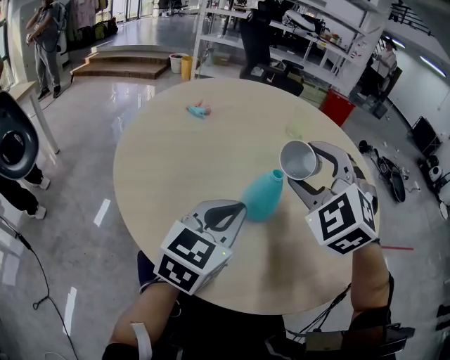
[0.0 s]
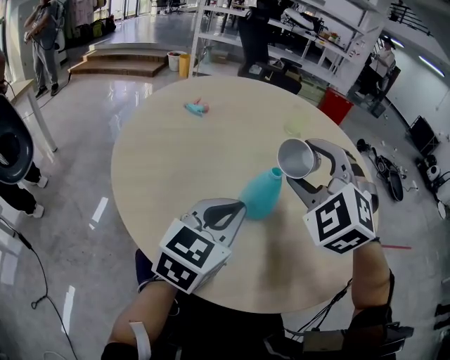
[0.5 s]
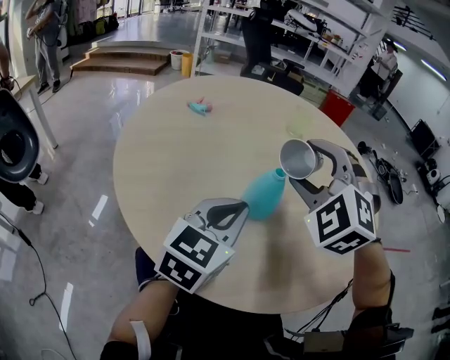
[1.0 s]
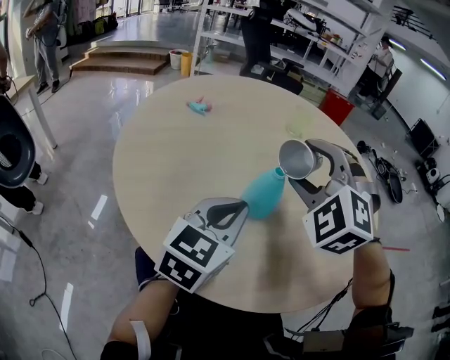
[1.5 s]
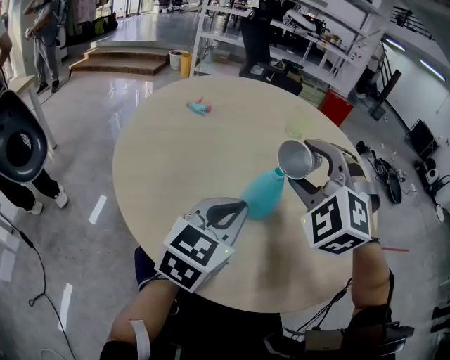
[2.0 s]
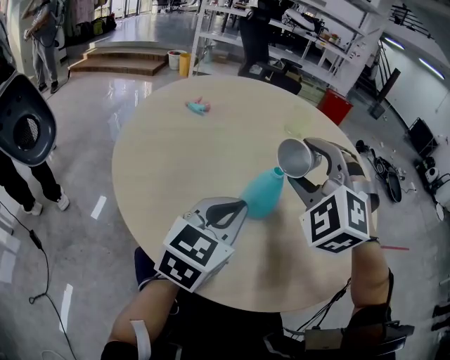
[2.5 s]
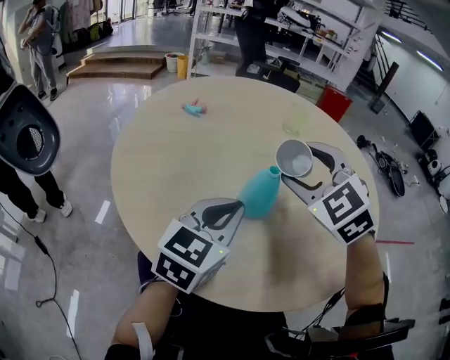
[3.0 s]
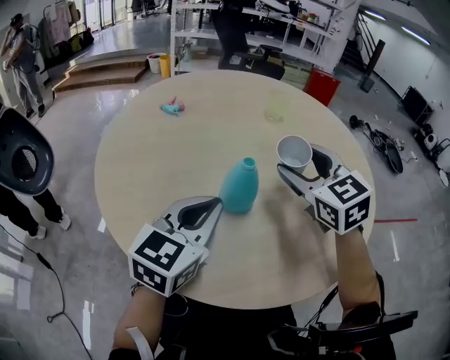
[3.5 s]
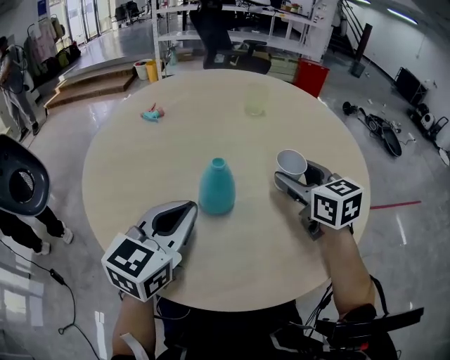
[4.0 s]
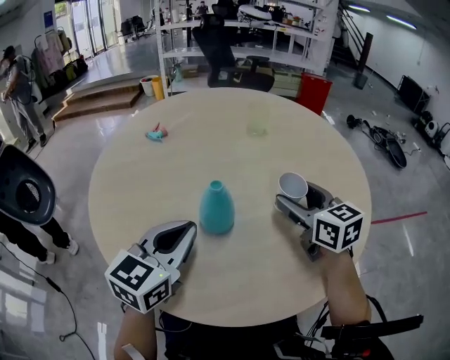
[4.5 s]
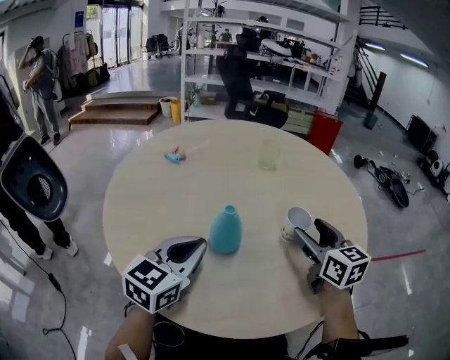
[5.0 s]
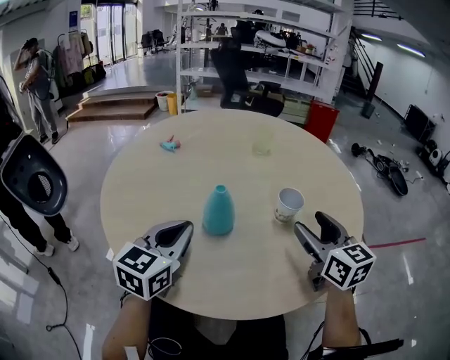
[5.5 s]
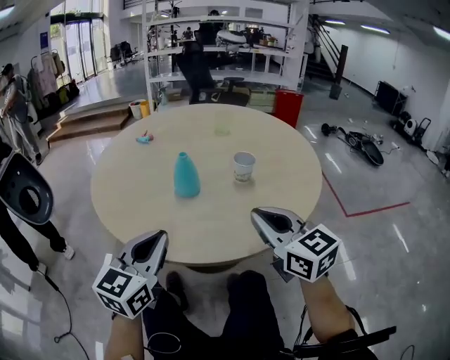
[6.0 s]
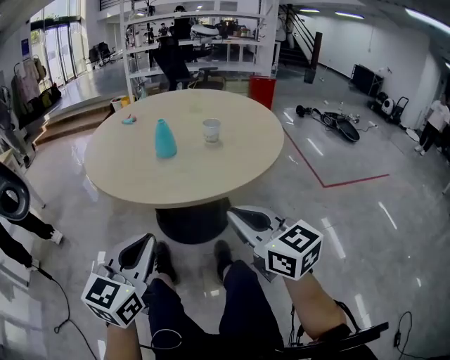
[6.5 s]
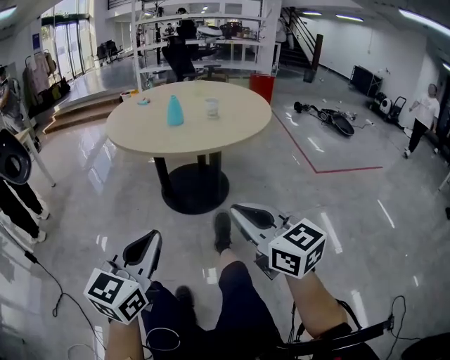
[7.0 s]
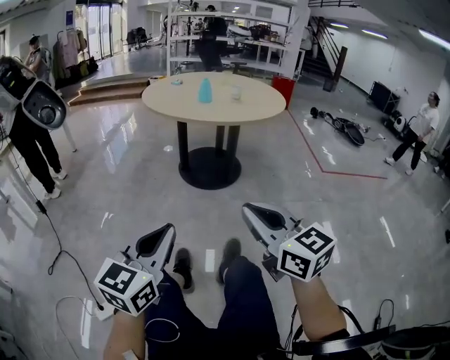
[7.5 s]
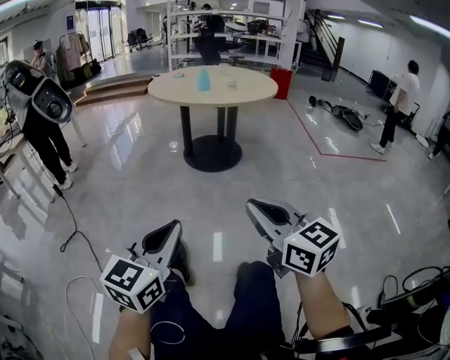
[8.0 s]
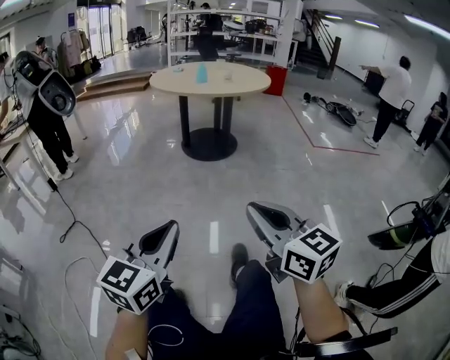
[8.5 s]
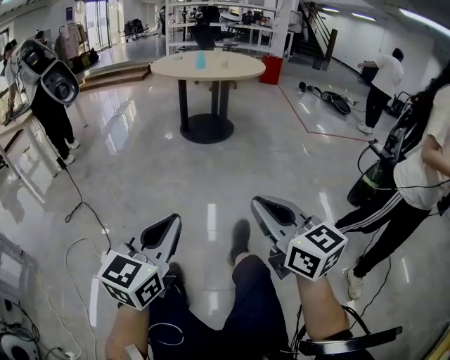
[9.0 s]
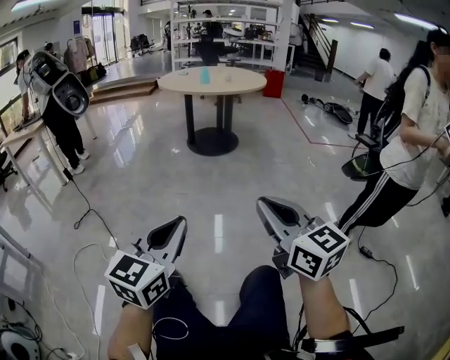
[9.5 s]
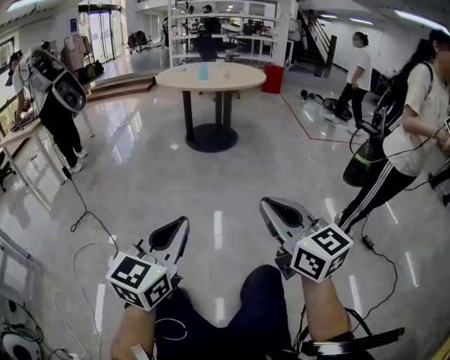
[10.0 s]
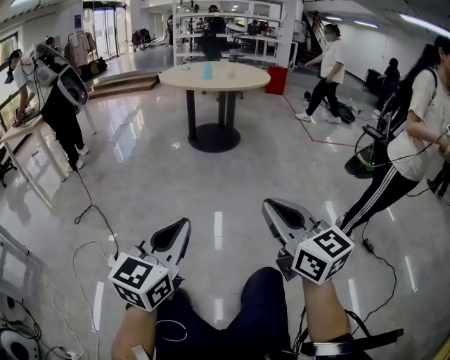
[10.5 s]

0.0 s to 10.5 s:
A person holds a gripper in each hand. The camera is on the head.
0.0 to 2.0 s: The grippers stay close to where they were, moving slightly.
2.0 to 4.0 s: The right gripper is displaced to the right and downward by roughly 15 cm, and twists roughly 70 degrees clockwise, seen from behind.
4.0 to 6.5 s: The two grippers go approximately 35 cm backward. The right gripper closes its fingers.
6.5 to 8.5 s: Both grippers are carried backward, approximately 70 cm.
8.5 to 10.5 s: The two grippers go approximately 15 cm backward.

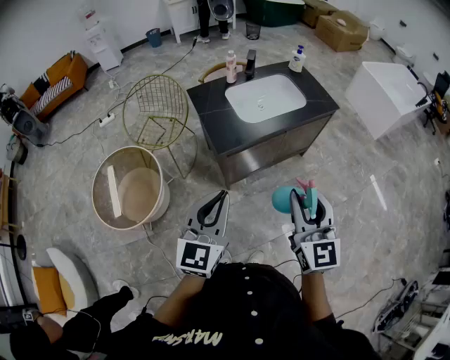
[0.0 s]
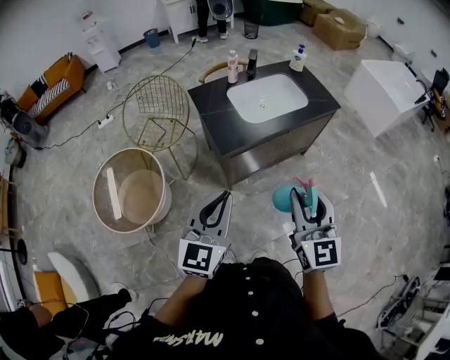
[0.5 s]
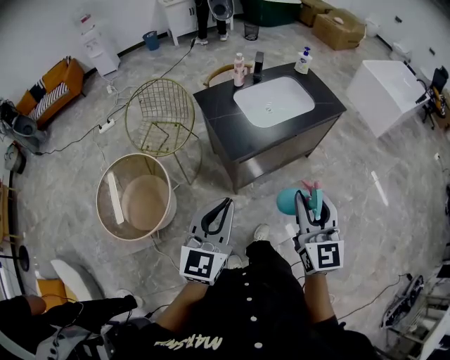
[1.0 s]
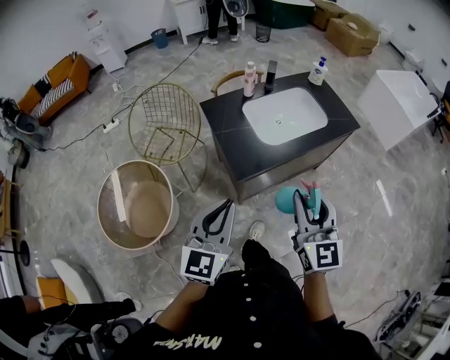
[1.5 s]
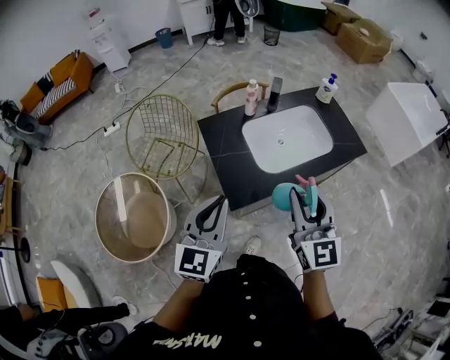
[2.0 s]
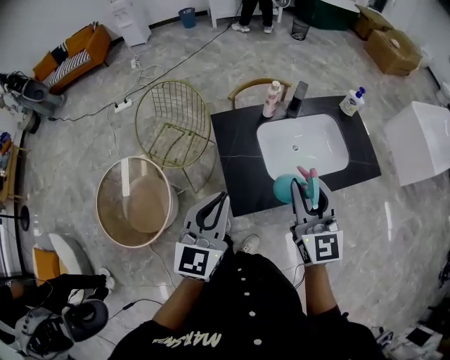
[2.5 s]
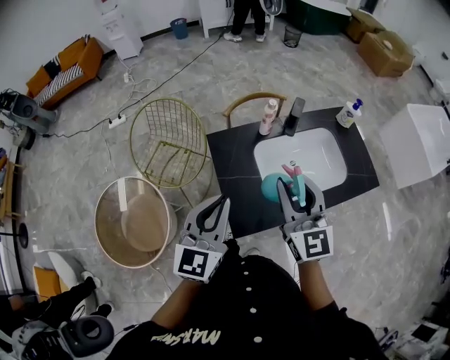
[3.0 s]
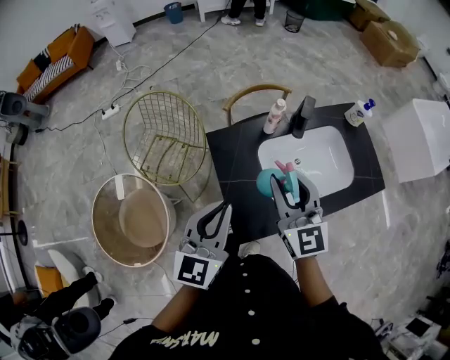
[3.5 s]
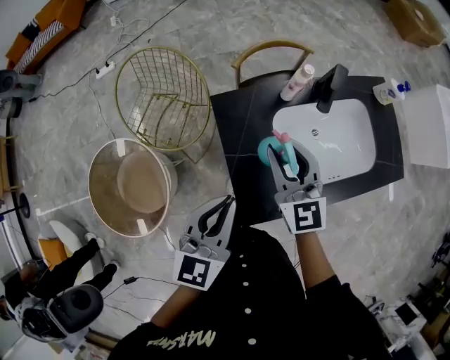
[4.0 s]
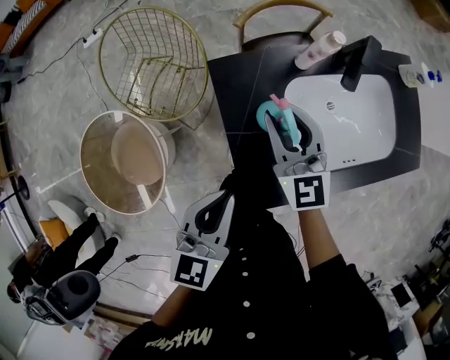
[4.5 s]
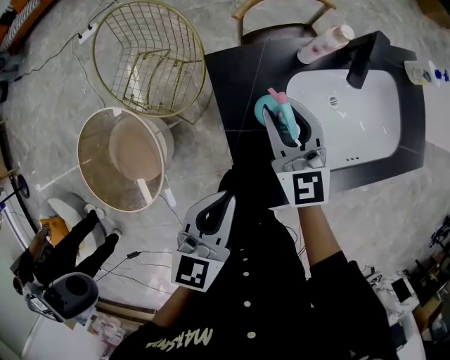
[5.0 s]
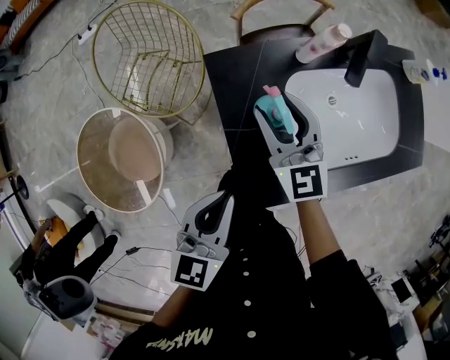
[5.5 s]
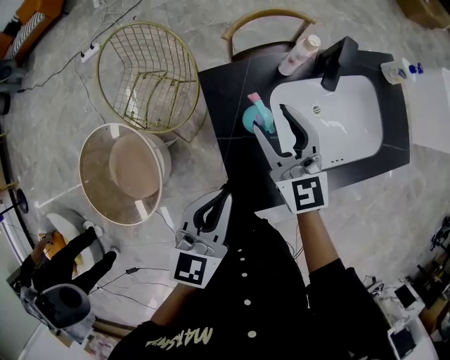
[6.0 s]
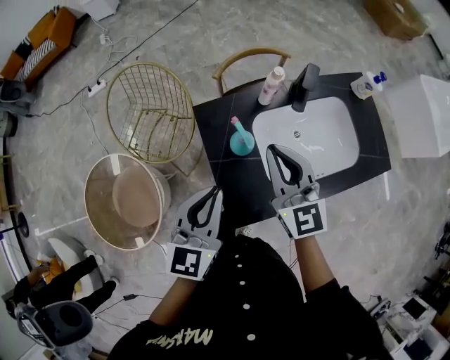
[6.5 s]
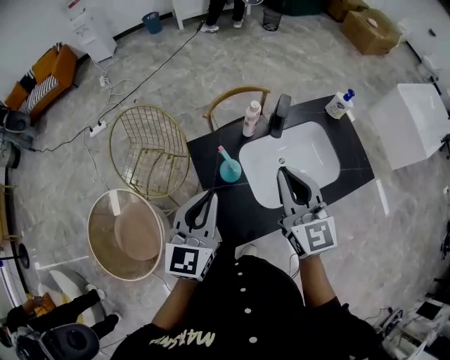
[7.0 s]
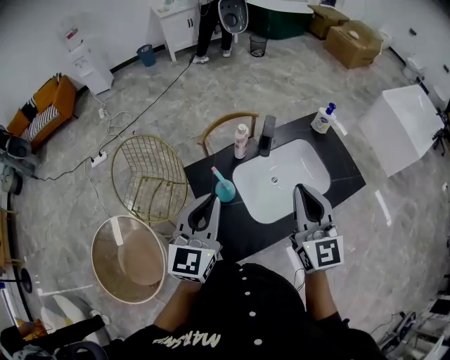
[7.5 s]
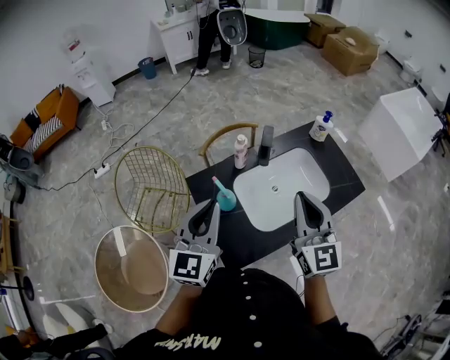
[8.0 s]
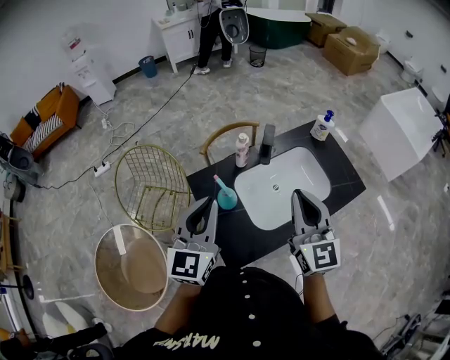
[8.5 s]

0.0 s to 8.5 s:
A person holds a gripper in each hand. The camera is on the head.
0.0 to 2.0 s: The two grippers go about 25 cm forward.
2.0 to 4.0 s: The left gripper is displaced forward and downward by some 20 cm. Meanwhile the right gripper moves forward, to the left and downward, some 35 cm.
4.0 to 6.5 s: The left gripper travels downward and back again, some 10 cm each way. Meanwhile the right gripper moves approximately 10 cm downward and comes back, and closes.
6.5 to 8.5 s: The right gripper is displaced to the right, upward and backward by roughly 20 cm, and rotates about 20 degrees. Meanwhile the left gripper goes some 10 cm upward.

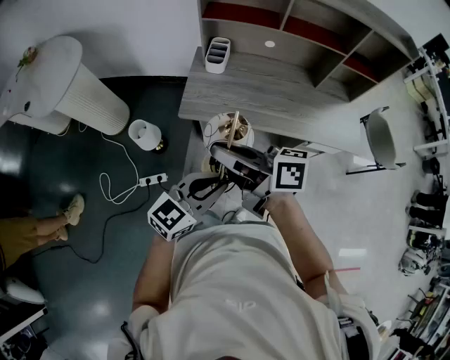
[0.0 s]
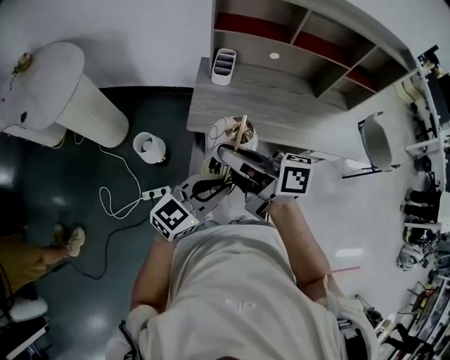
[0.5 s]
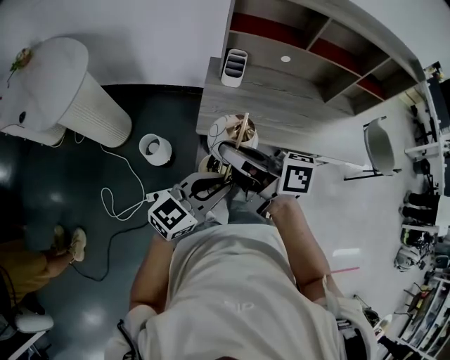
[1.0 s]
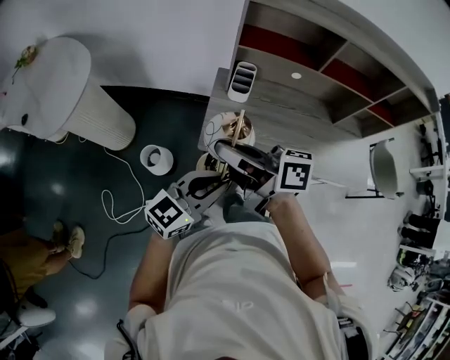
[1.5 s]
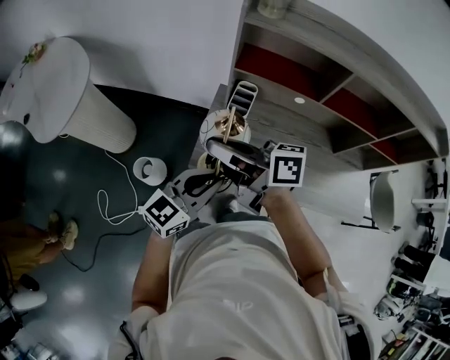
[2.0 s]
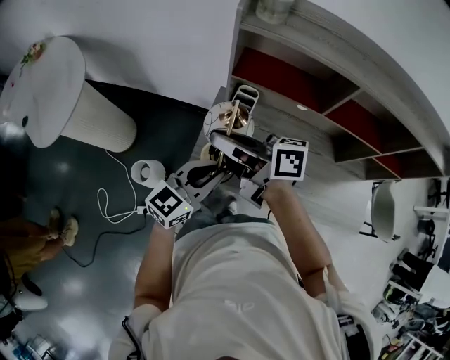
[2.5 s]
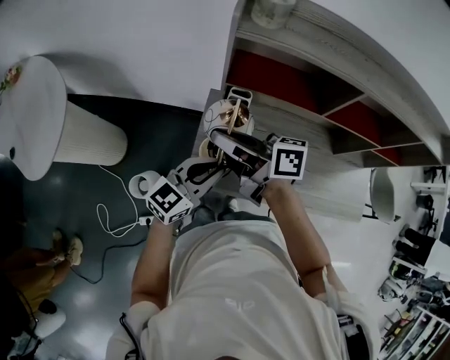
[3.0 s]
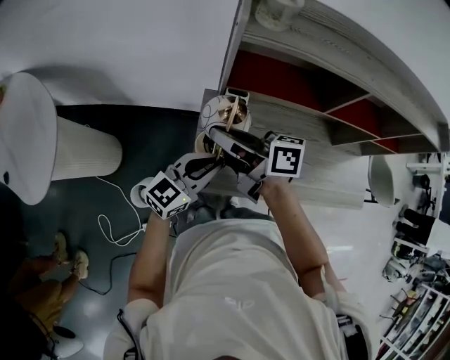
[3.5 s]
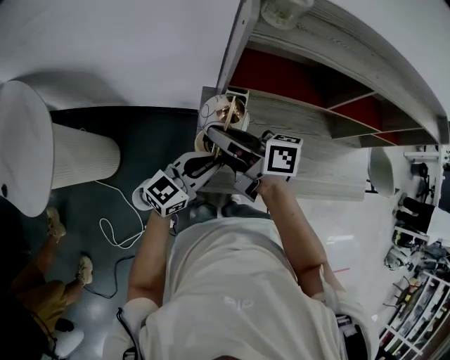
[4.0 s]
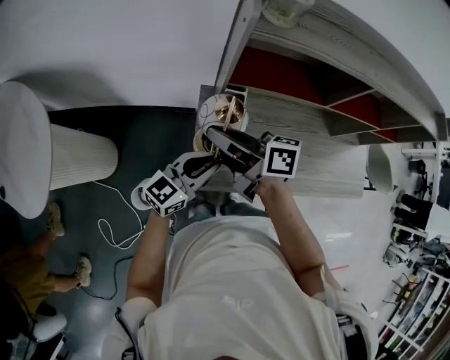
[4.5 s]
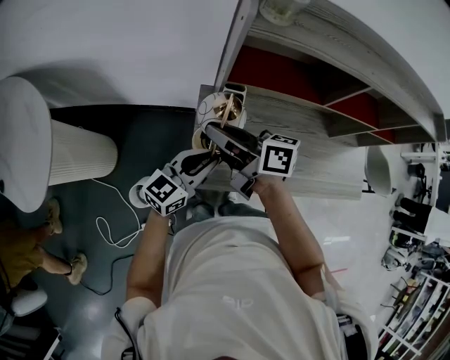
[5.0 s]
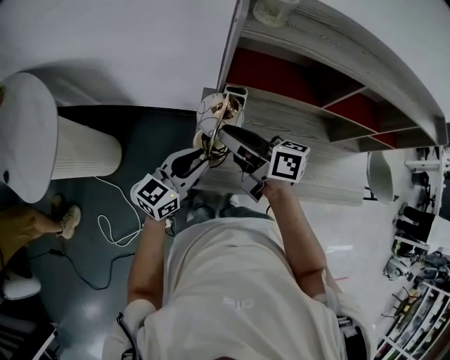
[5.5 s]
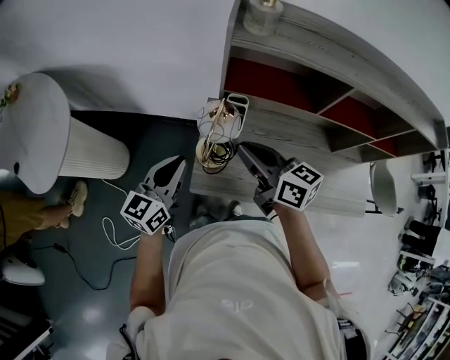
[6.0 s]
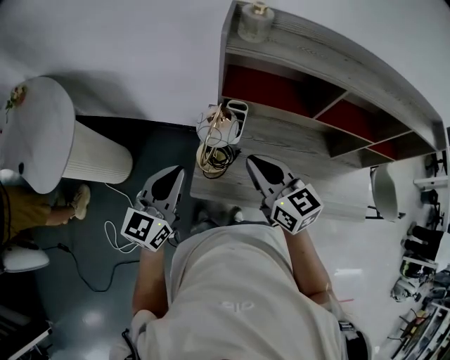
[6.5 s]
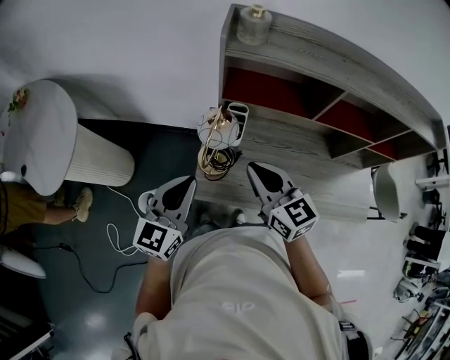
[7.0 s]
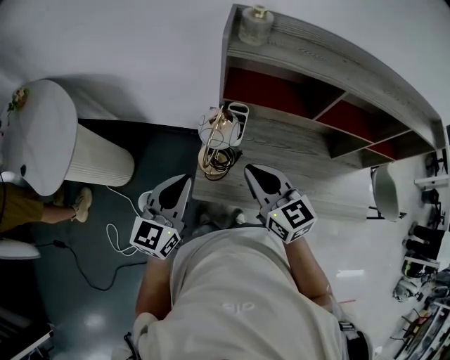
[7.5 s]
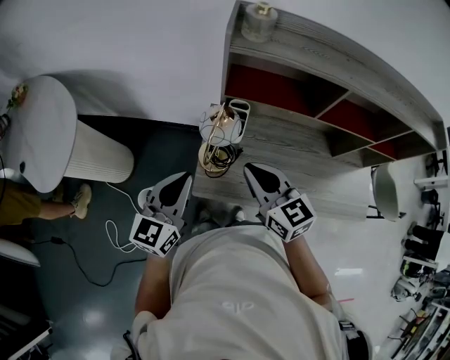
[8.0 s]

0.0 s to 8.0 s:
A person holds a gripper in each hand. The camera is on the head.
0.0 to 2.0 s: The grippers both shift forward by approximately 30 cm.
2.0 to 4.0 s: The two grippers go some 15 cm forward.
4.0 to 6.0 s: The right gripper goes some 10 cm to the right and backward, turns by some 20 degrees, and opens and closes again, while the left gripper is displaced to the left and upward by roughly 10 cm, and swivels about 30 degrees.
6.0 to 8.0 s: The right gripper goes roughly 5 cm backward, and swivels some 30 degrees; the left gripper changes place by approximately 5 cm.
